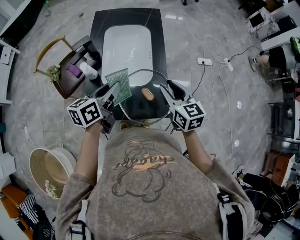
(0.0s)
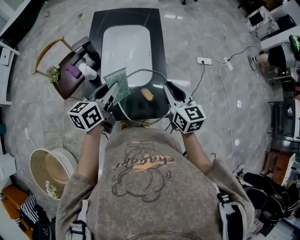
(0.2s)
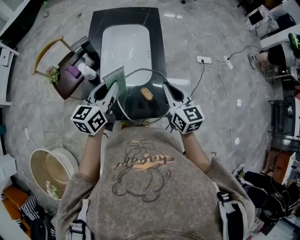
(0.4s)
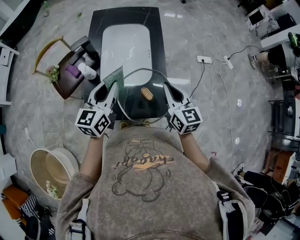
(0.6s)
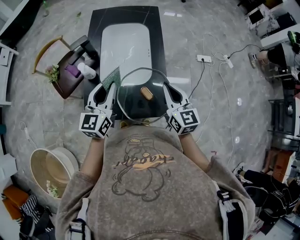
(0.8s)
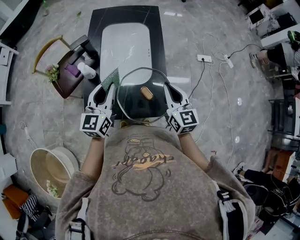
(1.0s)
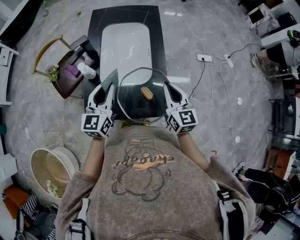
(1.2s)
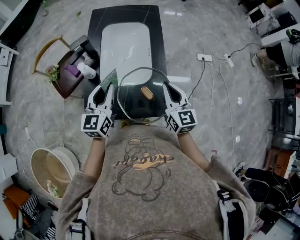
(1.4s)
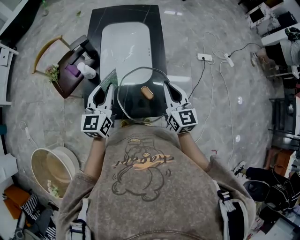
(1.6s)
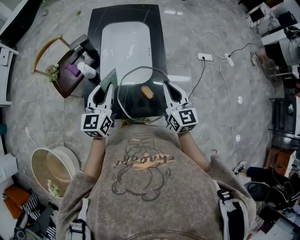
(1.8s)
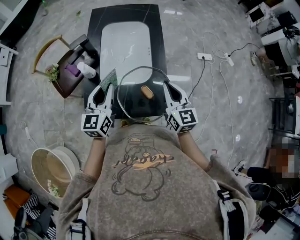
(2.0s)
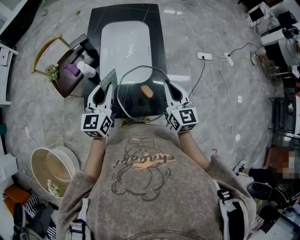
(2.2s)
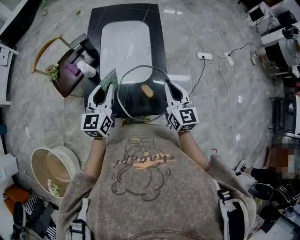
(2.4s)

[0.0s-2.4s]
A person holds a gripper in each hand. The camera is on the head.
0.0s to 1.2s: The right gripper closes up. Meanwhile the left gripper swivels roughly 40 degrees.
1.2s to 2.4s: Neither gripper changes place.

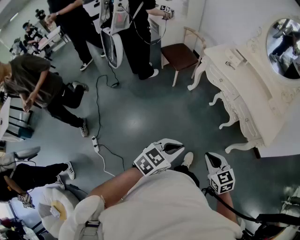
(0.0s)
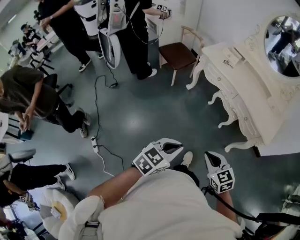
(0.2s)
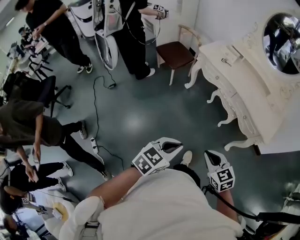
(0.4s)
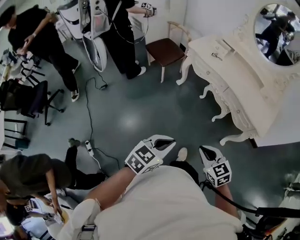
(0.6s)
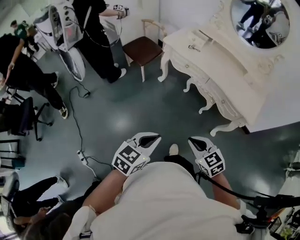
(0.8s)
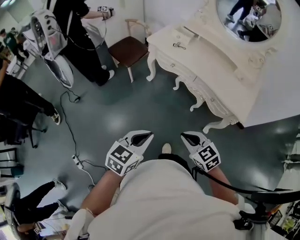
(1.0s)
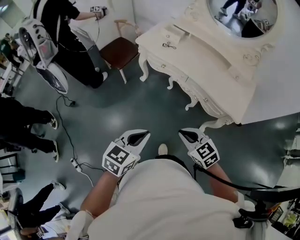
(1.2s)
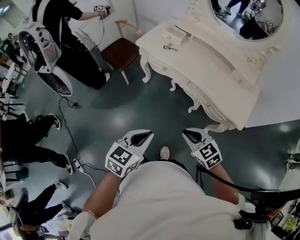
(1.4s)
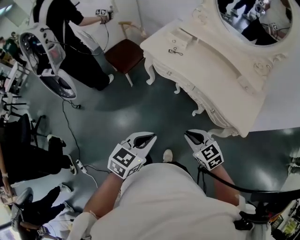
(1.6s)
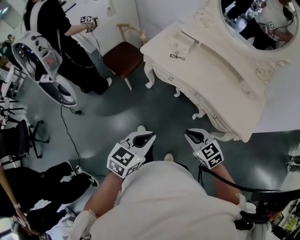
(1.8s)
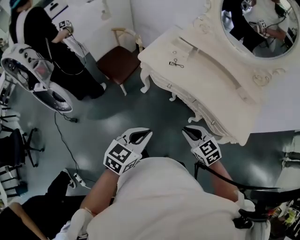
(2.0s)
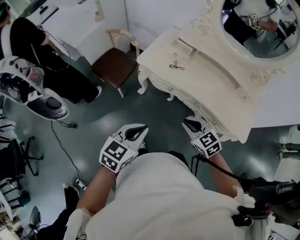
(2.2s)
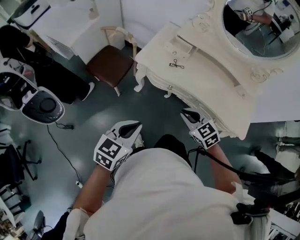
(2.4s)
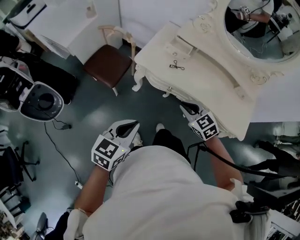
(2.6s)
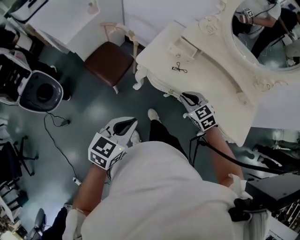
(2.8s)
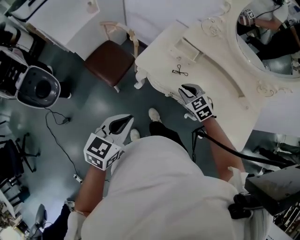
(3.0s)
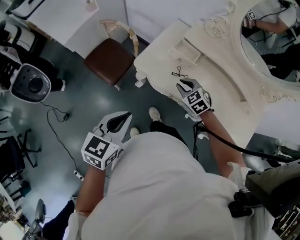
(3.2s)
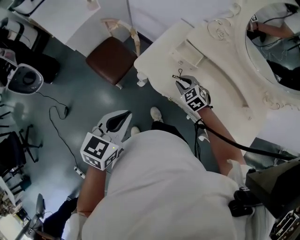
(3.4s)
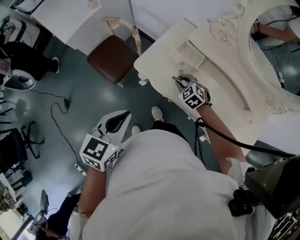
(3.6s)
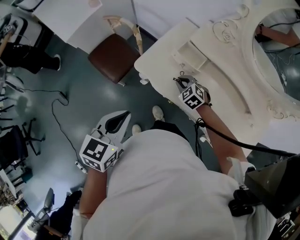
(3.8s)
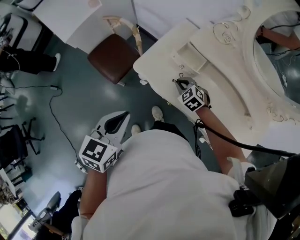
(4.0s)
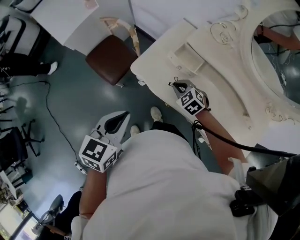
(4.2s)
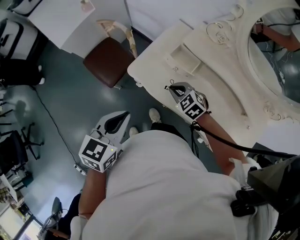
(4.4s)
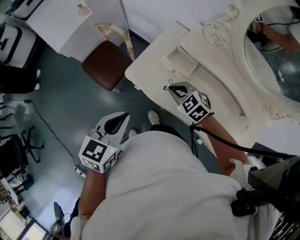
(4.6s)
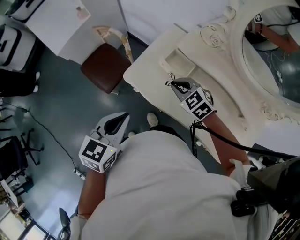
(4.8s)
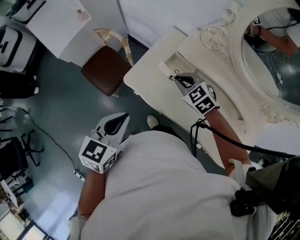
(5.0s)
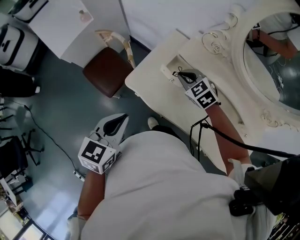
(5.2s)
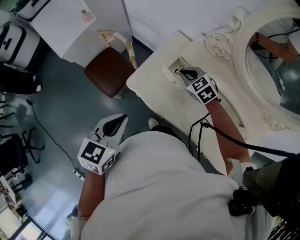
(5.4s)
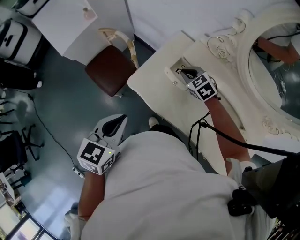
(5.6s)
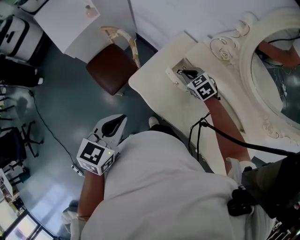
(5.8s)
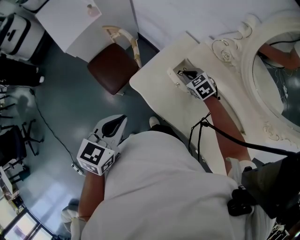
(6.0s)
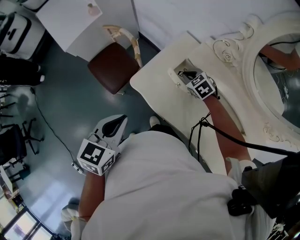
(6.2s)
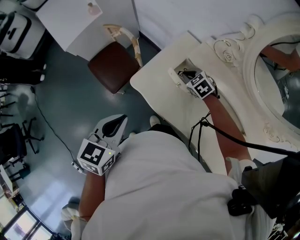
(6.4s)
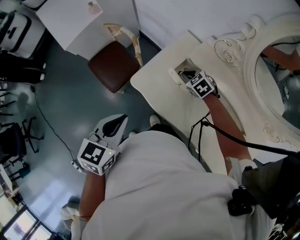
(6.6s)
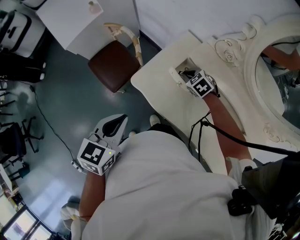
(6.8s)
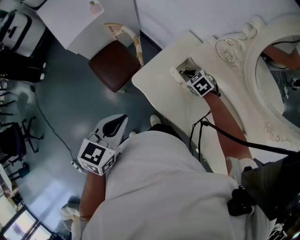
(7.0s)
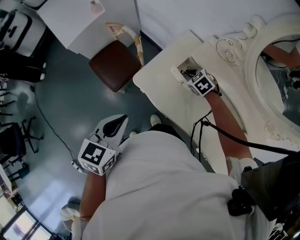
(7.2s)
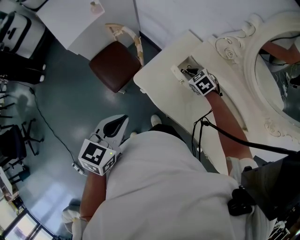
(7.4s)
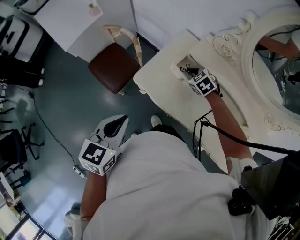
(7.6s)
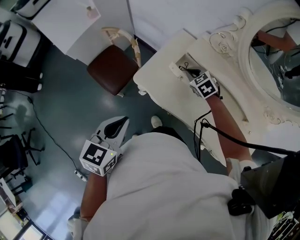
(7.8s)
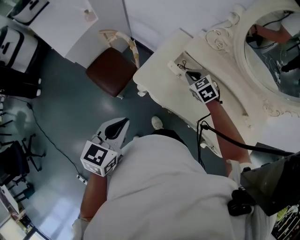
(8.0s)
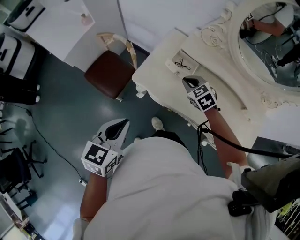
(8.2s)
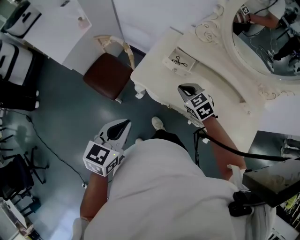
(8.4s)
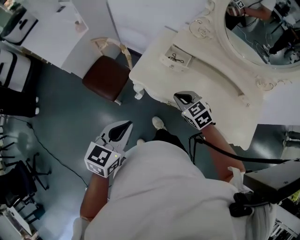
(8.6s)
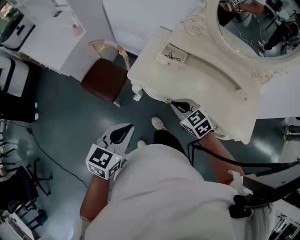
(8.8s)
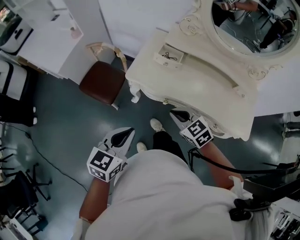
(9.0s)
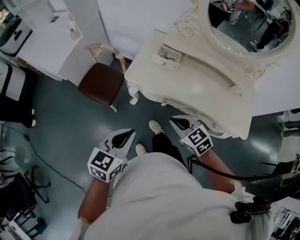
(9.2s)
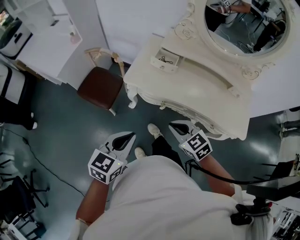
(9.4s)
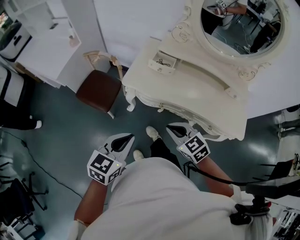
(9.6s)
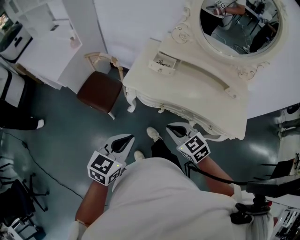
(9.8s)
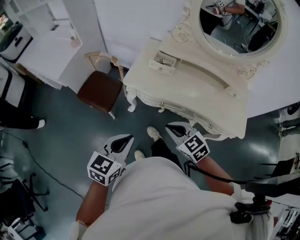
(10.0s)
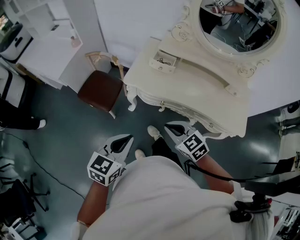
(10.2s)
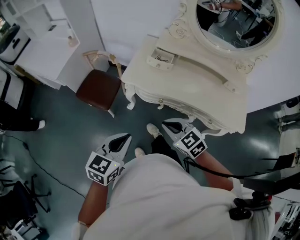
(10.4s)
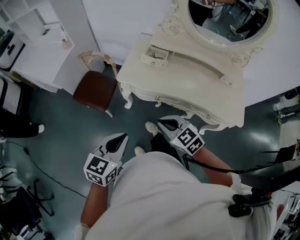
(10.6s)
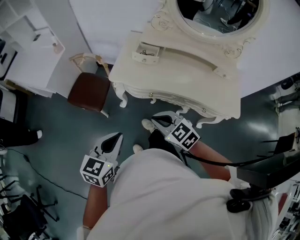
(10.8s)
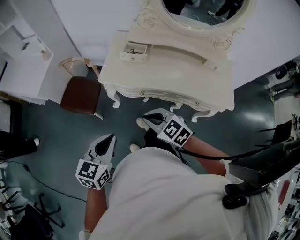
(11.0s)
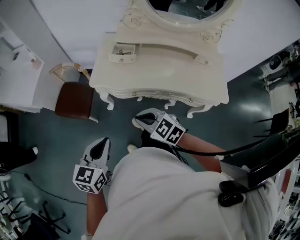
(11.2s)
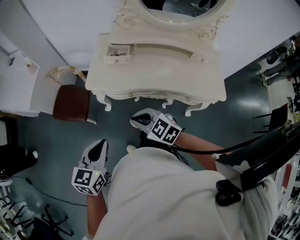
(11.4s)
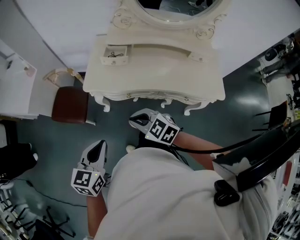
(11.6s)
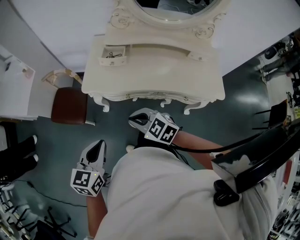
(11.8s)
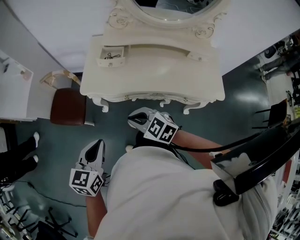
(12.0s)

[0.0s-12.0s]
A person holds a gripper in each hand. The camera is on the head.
0.0s to 1.6s: Both grippers move forward and to the right, some 30 cm.
1.6s to 3.0s: The right gripper heads forward, covering approximately 50 cm. The left gripper heads forward and to the left, covering roughly 40 cm.
3.0s to 4.4s: The left gripper heads forward and to the right, covering roughly 15 cm, while the right gripper is displaced forward by some 10 cm.
4.4s to 6.0s: The right gripper moves forward and to the right, approximately 15 cm, while the left gripper travels forward by about 5 cm.
6.0s to 7.6s: There are only small adjustments of the grippers.
7.6s to 9.0s: The left gripper travels backward by some 15 cm, and rotates approximately 20 degrees. The right gripper is displaced backward by approximately 35 cm, and changes its angle by approximately 20 degrees.
9.0s to 10.4s: Both grippers move backward, about 10 cm.
10.4s to 12.0s: The left gripper changes place by roughly 5 cm.

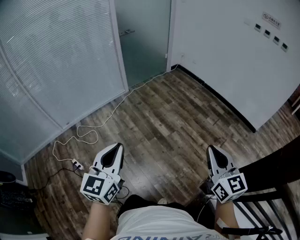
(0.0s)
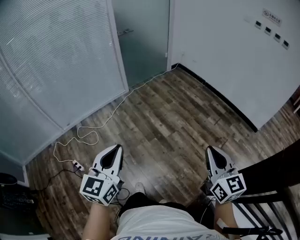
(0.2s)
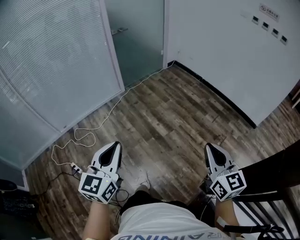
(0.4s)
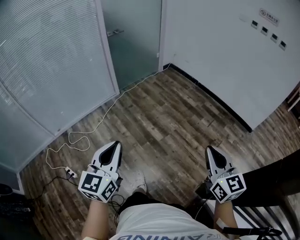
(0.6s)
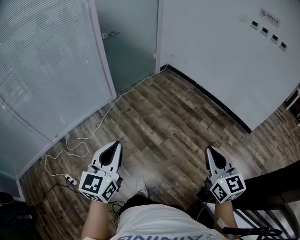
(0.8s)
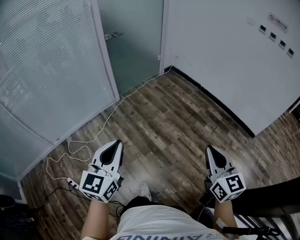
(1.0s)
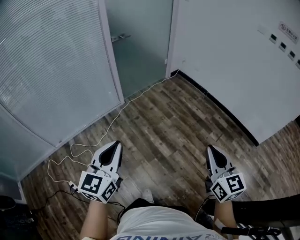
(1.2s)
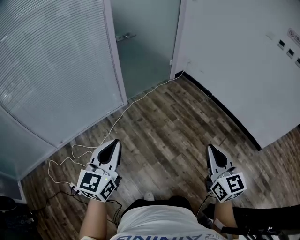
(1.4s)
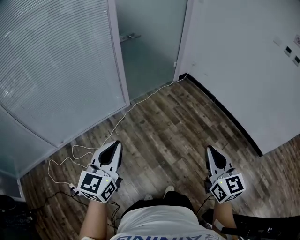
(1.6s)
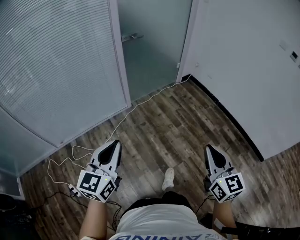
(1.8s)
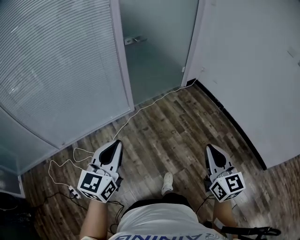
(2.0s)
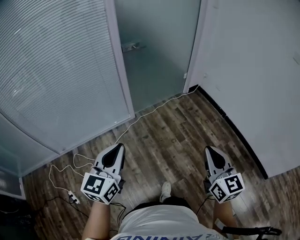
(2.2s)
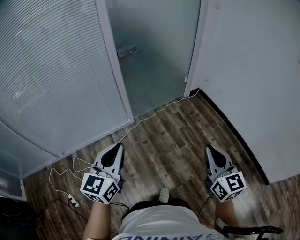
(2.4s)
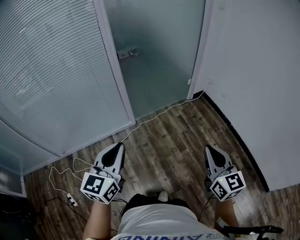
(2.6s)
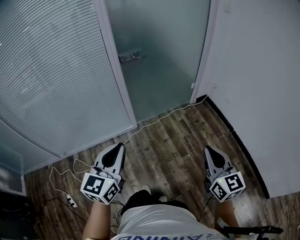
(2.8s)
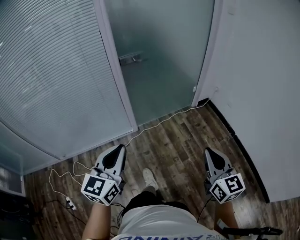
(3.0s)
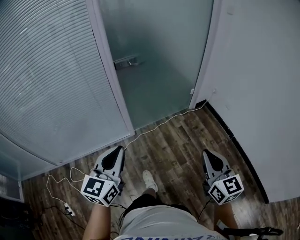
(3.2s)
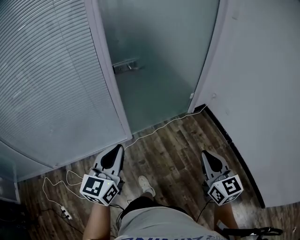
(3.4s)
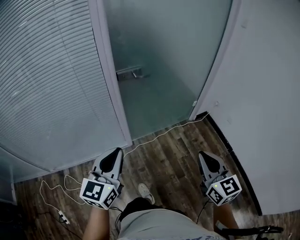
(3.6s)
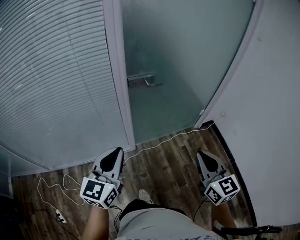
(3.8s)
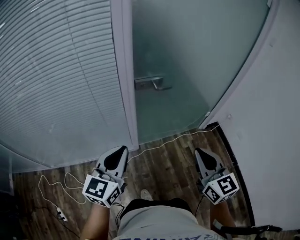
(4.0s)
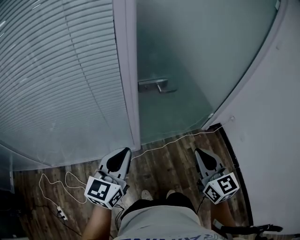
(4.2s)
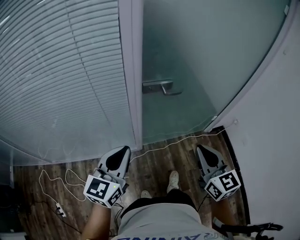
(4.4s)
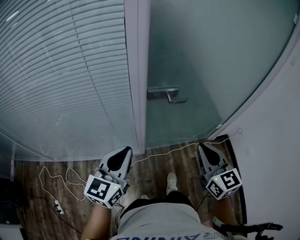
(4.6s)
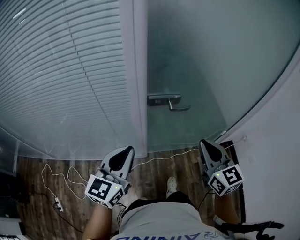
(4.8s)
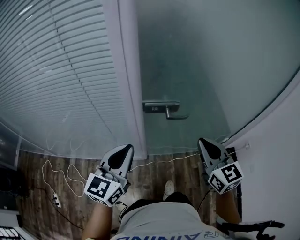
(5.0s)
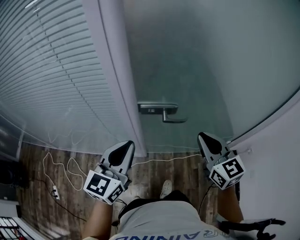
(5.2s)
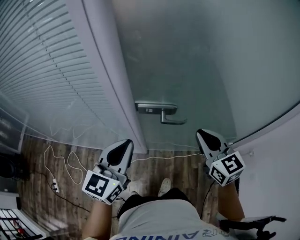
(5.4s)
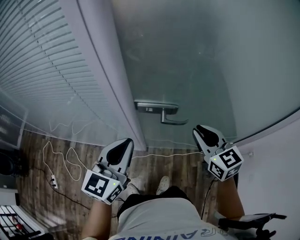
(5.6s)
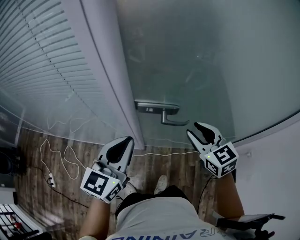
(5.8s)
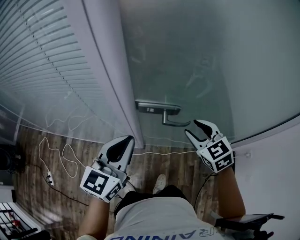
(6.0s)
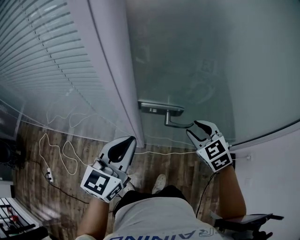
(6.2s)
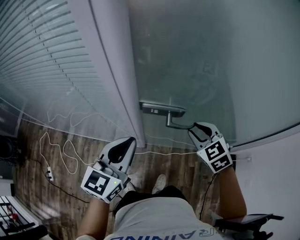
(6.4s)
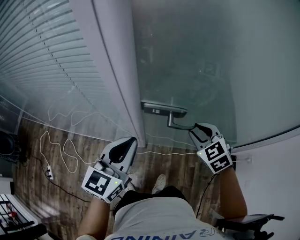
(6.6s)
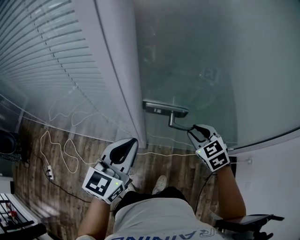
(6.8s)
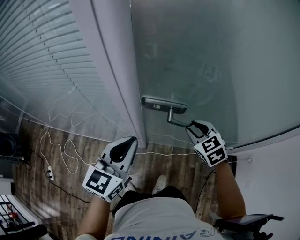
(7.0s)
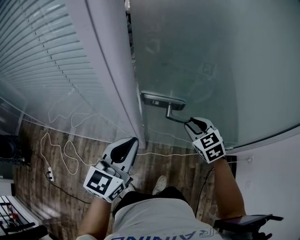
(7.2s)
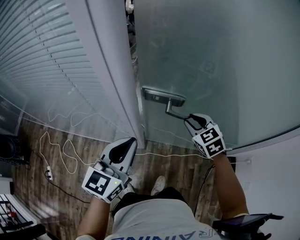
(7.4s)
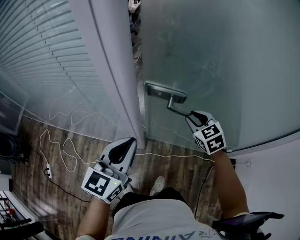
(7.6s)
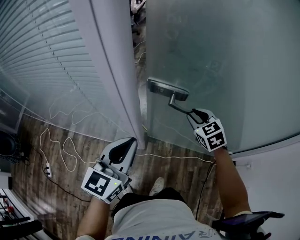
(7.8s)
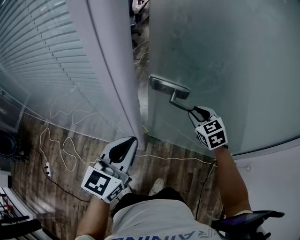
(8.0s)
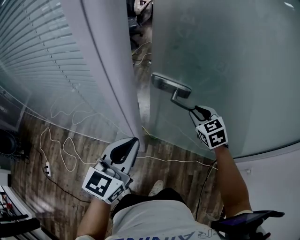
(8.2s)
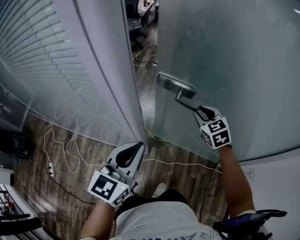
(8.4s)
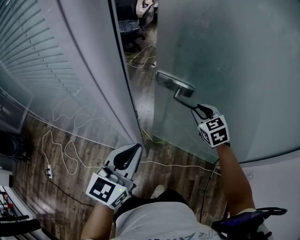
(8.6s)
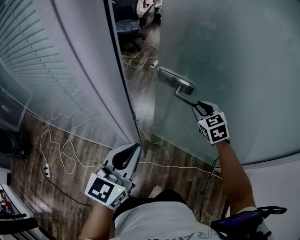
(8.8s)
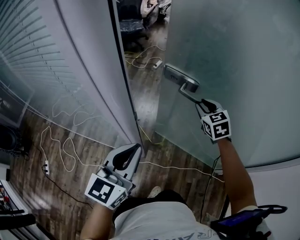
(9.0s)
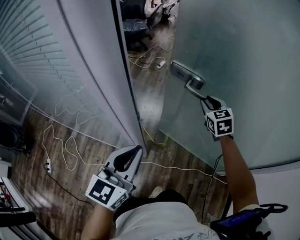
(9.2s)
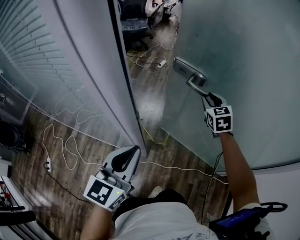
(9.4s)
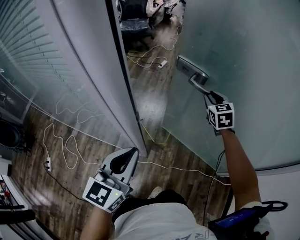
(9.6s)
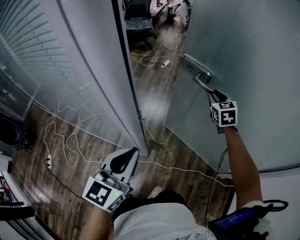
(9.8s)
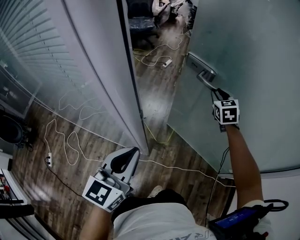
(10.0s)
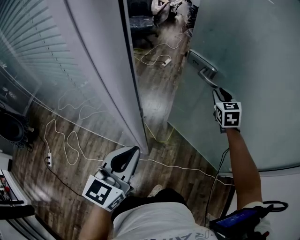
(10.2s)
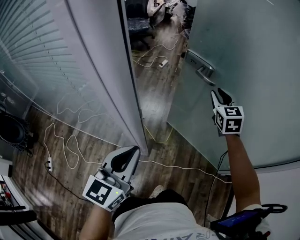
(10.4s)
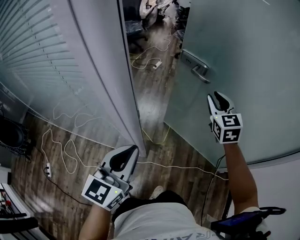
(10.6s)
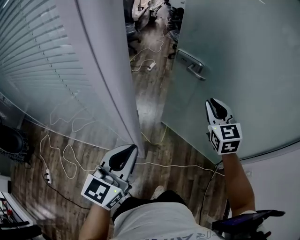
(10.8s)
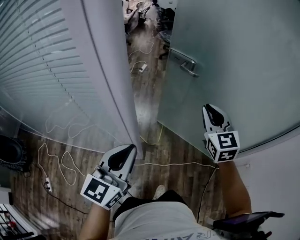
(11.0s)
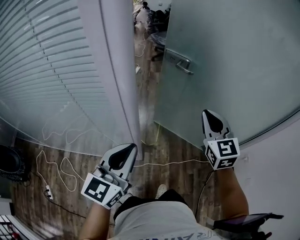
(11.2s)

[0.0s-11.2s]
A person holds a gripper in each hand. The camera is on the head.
0.0s to 1.6s: The two grippers travel together, forward, roughly 40 cm.
1.6s to 3.2s: The two grippers travel together, forward, roughly 40 cm.
3.2s to 4.8s: The two grippers go some 40 cm forward. The right gripper changes its angle by about 20 degrees.
4.8s to 6.4s: The left gripper is displaced forward and to the right by some 15 cm, while the right gripper moves forward and downward, some 25 cm, angles its fingers downward, by about 30 degrees, and opens up.
6.4s to 8.0s: The right gripper moves forward, some 10 cm.
8.0s to 9.6s: The right gripper shifts some 15 cm forward.
9.6s to 11.2s: The left gripper changes place by roughly 5 cm; the right gripper goes approximately 25 cm backward and upward, and closes up.
